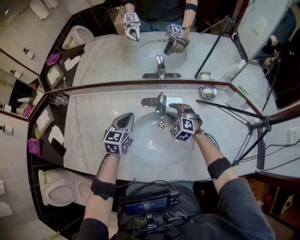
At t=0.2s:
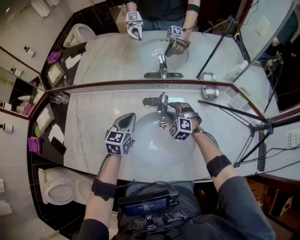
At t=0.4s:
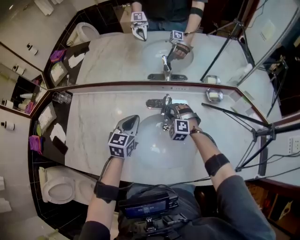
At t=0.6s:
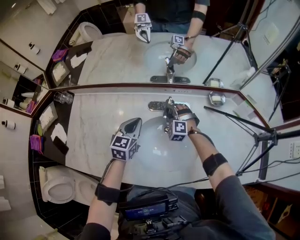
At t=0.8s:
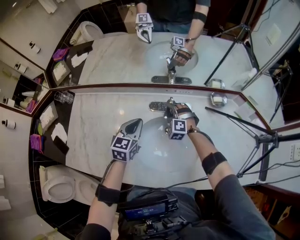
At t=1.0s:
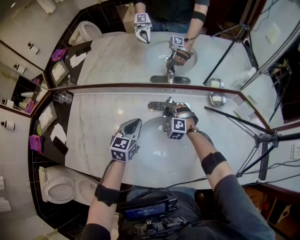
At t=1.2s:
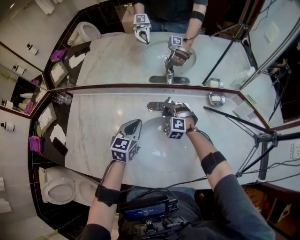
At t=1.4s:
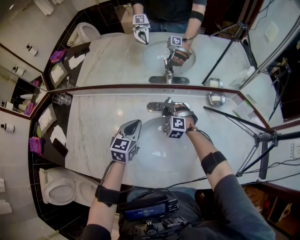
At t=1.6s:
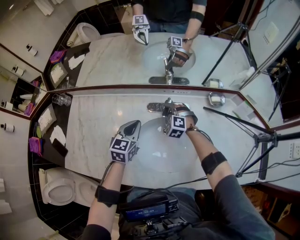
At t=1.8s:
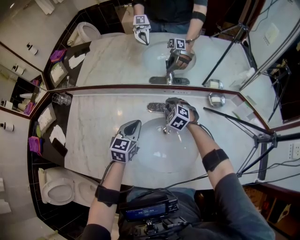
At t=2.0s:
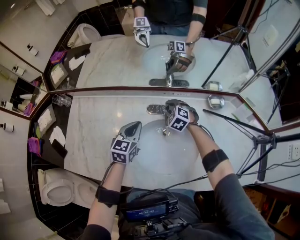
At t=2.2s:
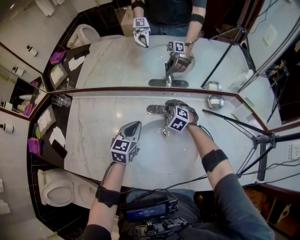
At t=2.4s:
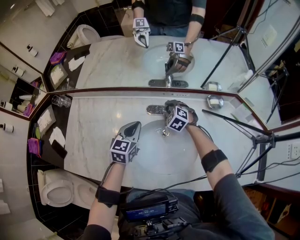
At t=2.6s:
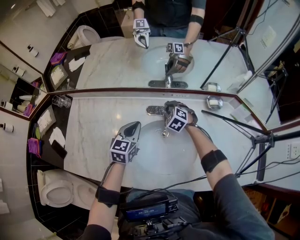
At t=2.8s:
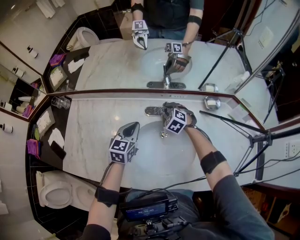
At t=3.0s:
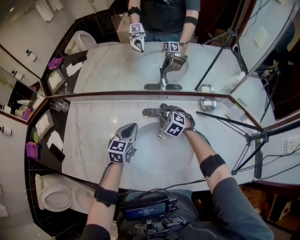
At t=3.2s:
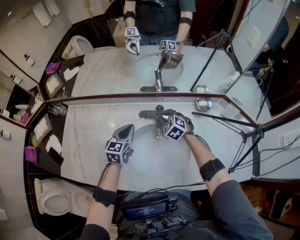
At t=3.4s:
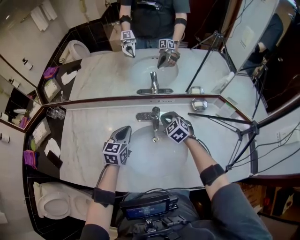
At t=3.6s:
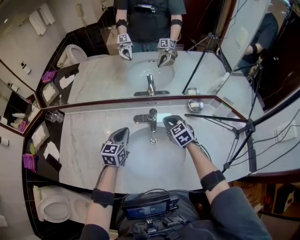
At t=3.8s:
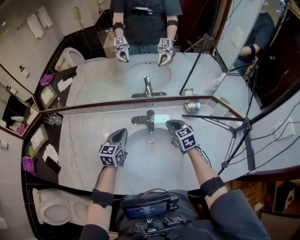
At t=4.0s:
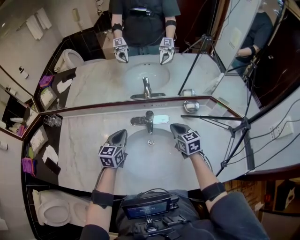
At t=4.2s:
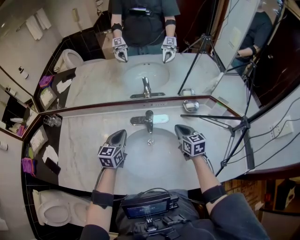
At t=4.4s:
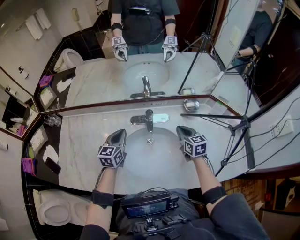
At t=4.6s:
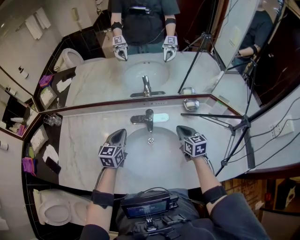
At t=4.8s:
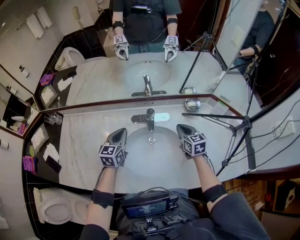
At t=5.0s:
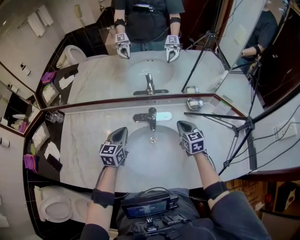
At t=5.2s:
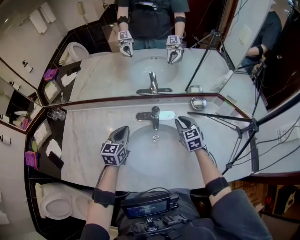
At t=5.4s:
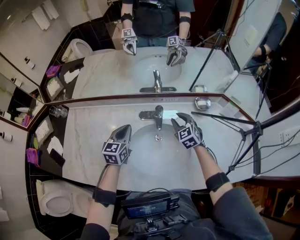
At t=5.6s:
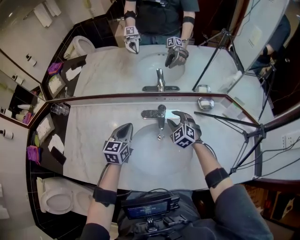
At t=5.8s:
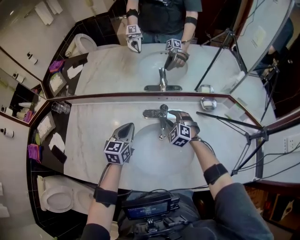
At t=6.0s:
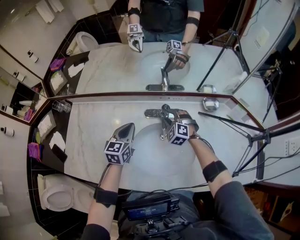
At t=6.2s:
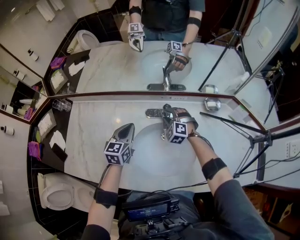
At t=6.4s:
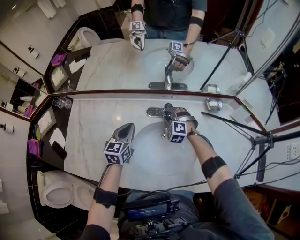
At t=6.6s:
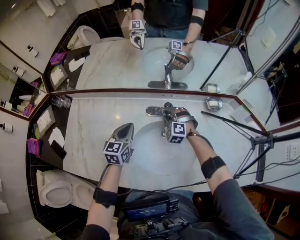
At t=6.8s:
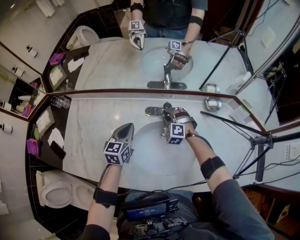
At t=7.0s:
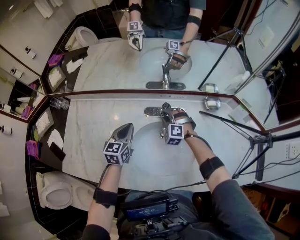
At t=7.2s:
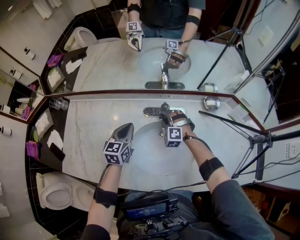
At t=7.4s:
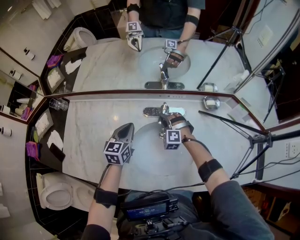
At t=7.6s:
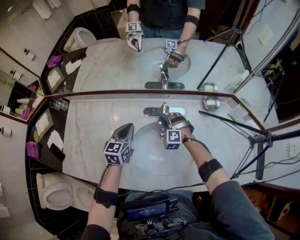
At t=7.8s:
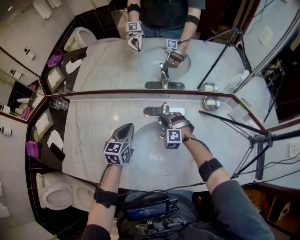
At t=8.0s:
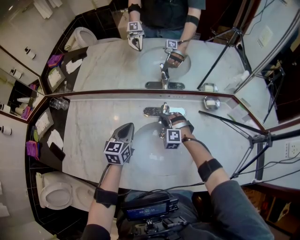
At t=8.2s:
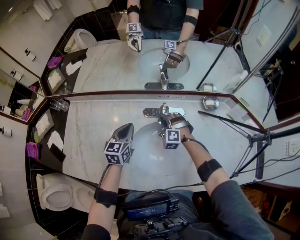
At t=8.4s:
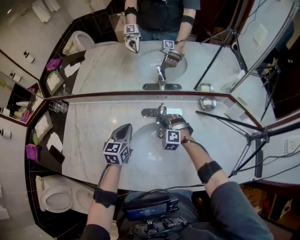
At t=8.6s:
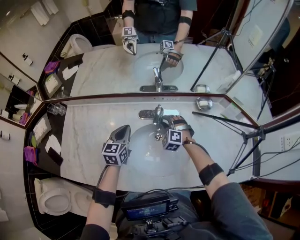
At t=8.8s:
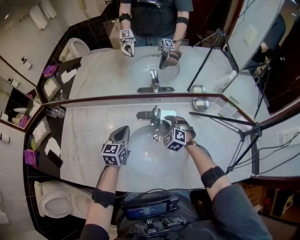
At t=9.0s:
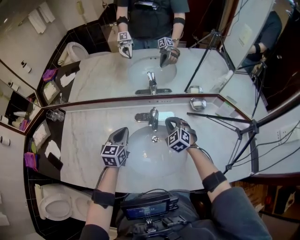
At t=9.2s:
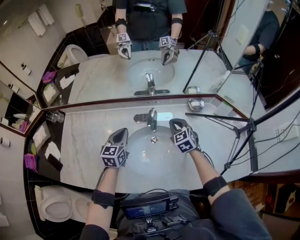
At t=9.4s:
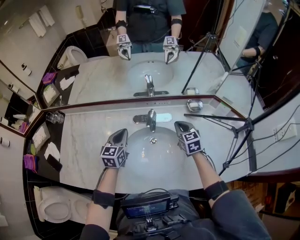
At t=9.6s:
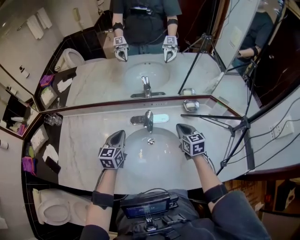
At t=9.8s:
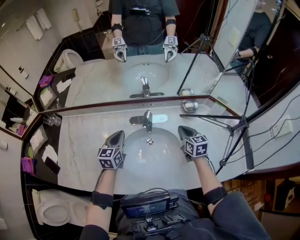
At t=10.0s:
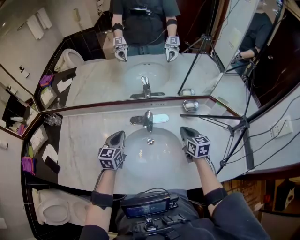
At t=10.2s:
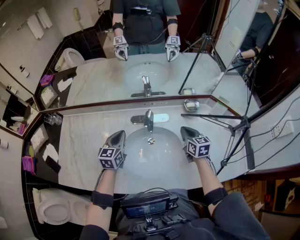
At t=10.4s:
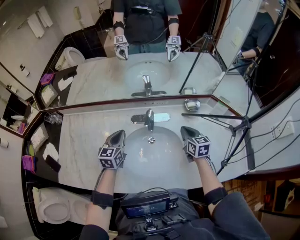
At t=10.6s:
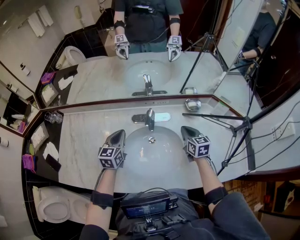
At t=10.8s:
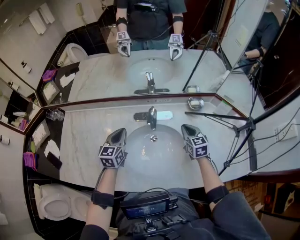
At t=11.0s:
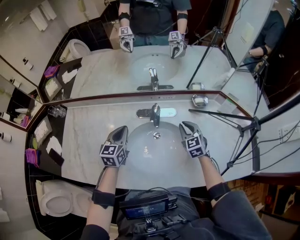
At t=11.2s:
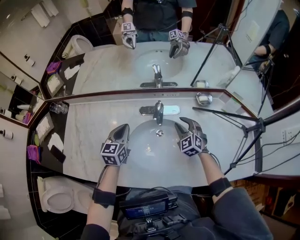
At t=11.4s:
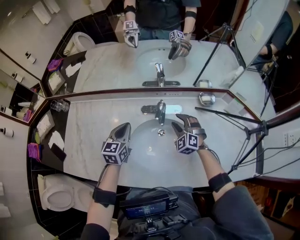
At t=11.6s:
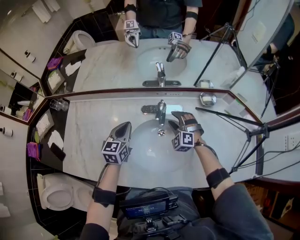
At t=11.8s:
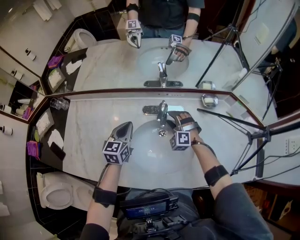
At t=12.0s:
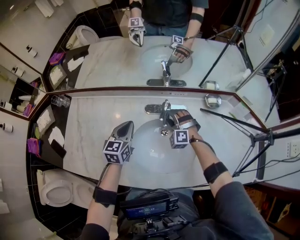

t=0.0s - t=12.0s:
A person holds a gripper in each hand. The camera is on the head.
t=0.0s - t=1.6s: The right gripper shifts about 5 cm forward.
t=1.6s - t=3.0s: The grippers make only small movements.
t=3.0s - t=4.4s: The right gripper moves to the right, backward and upward, some 20 cm, twists approximately 50 degrees clockwise, seen from behind, and closes.
t=4.4s - t=6.0s: The right gripper shifts roughly 20 cm to the left, forward and downward, rolls counterclockwise, seen from behind, by roughly 70 degrees, and opens its fingers.
t=6.0s - t=7.6s: The right gripper changes place by some 5 cm.
t=7.6s - t=9.0s: The right gripper heads to the right and upward, covering approximately 10 cm, changes its angle by some 40 degrees, and closes up.
t=9.0s - t=10.4s: The right gripper shifts about 15 cm to the right and backward, and twists about 50 degrees clockwise, seen from behind.
t=10.4s - t=12.0s: The right gripper moves to the left, downward and forward, approximately 20 cm, twists about 90 degrees counterclockwise, seen from behind, and opens up.

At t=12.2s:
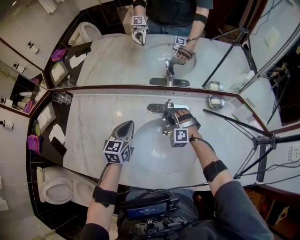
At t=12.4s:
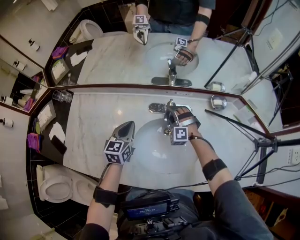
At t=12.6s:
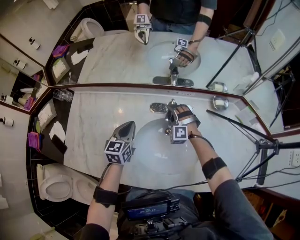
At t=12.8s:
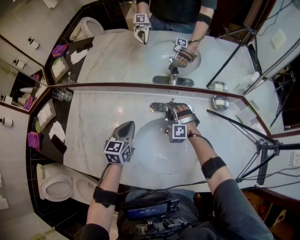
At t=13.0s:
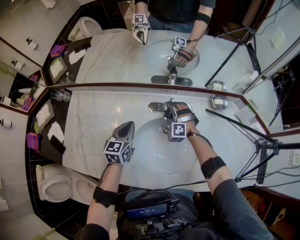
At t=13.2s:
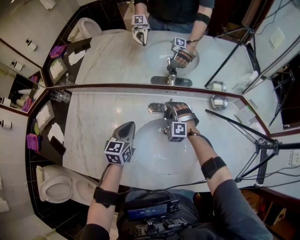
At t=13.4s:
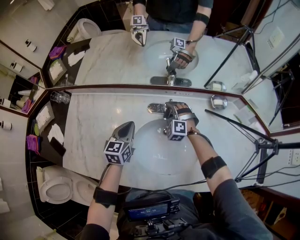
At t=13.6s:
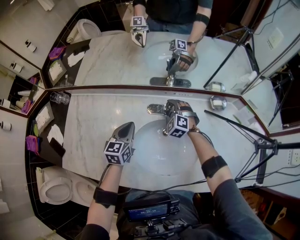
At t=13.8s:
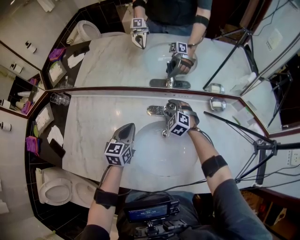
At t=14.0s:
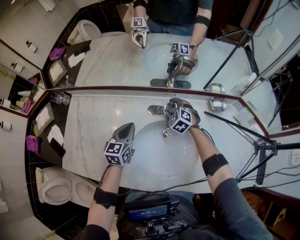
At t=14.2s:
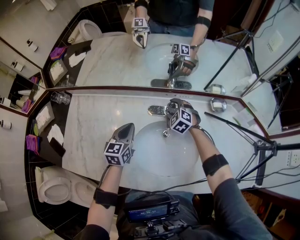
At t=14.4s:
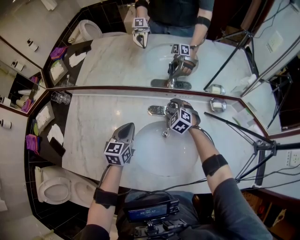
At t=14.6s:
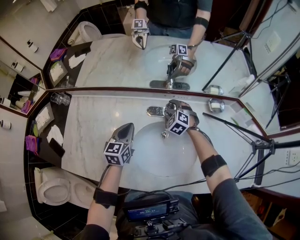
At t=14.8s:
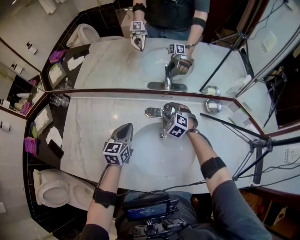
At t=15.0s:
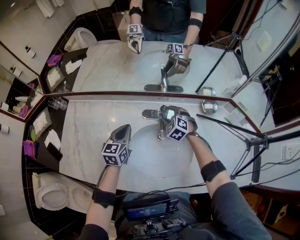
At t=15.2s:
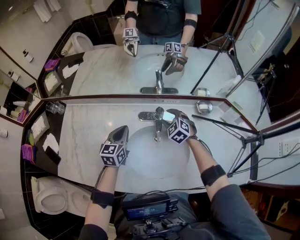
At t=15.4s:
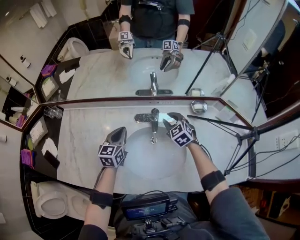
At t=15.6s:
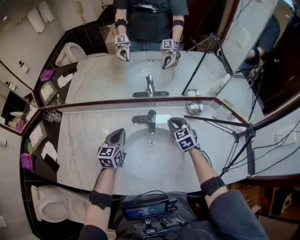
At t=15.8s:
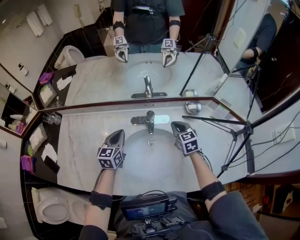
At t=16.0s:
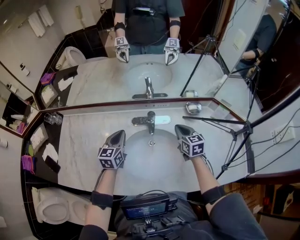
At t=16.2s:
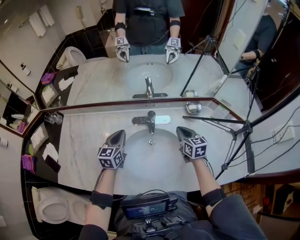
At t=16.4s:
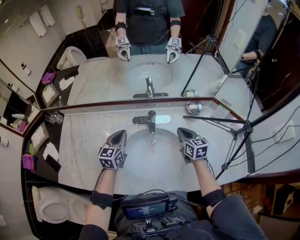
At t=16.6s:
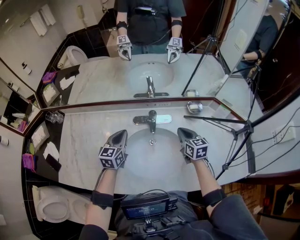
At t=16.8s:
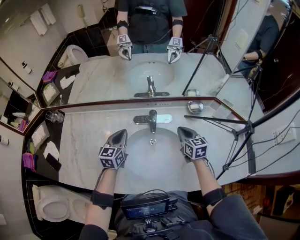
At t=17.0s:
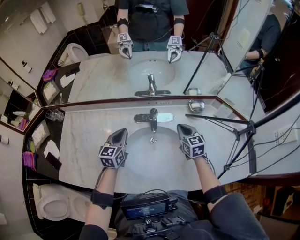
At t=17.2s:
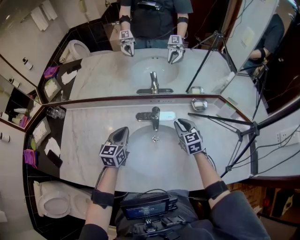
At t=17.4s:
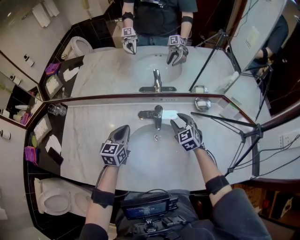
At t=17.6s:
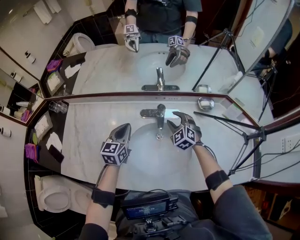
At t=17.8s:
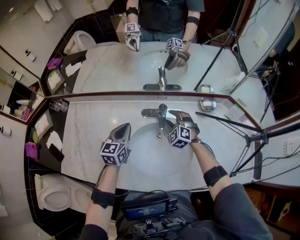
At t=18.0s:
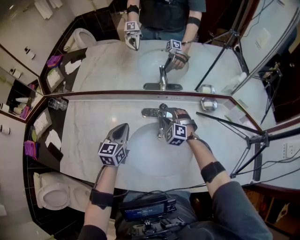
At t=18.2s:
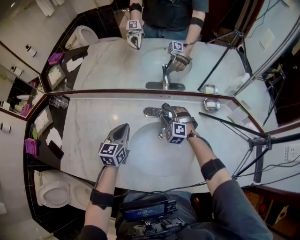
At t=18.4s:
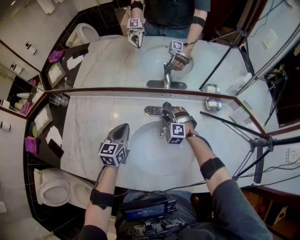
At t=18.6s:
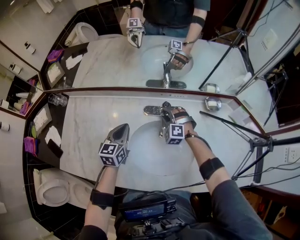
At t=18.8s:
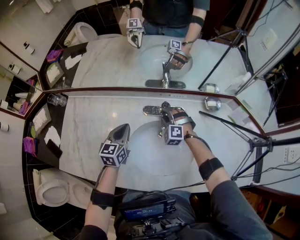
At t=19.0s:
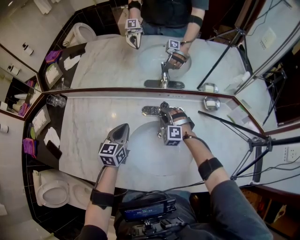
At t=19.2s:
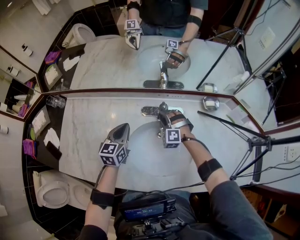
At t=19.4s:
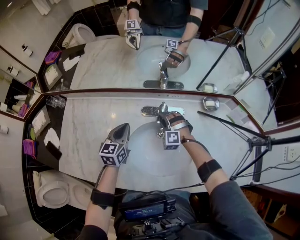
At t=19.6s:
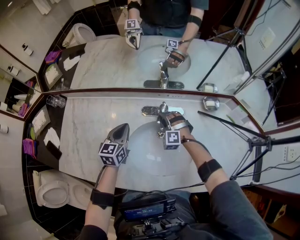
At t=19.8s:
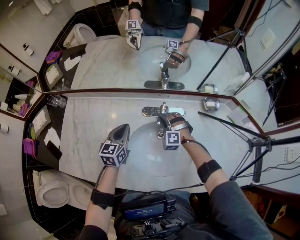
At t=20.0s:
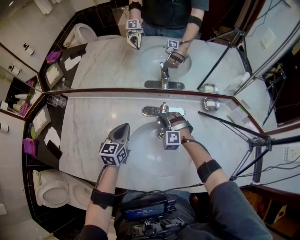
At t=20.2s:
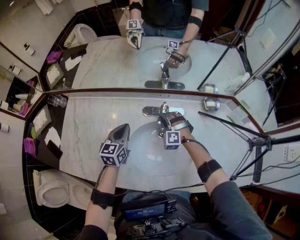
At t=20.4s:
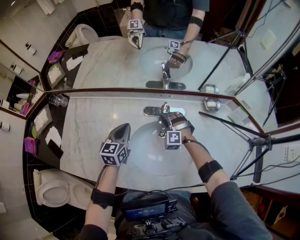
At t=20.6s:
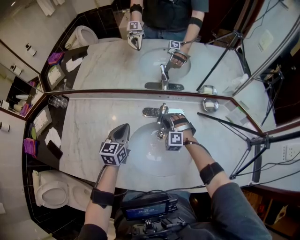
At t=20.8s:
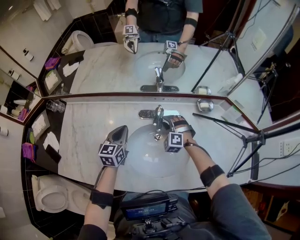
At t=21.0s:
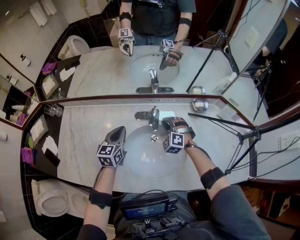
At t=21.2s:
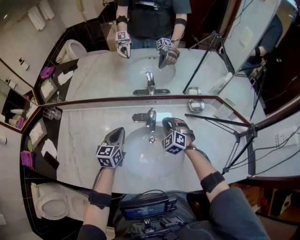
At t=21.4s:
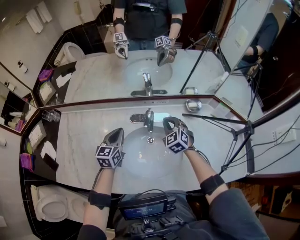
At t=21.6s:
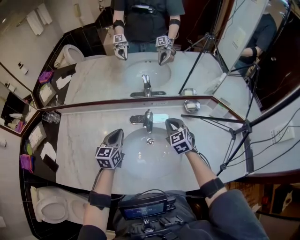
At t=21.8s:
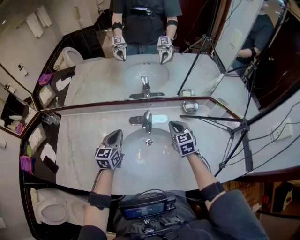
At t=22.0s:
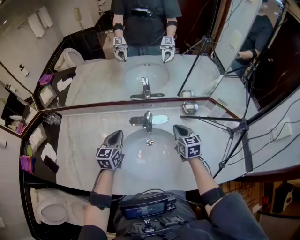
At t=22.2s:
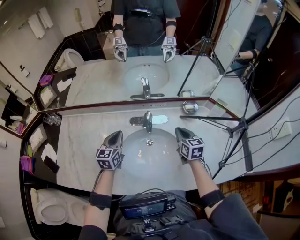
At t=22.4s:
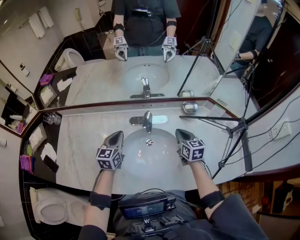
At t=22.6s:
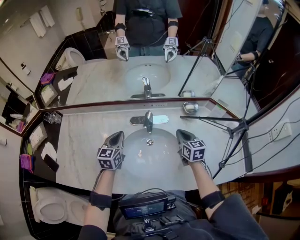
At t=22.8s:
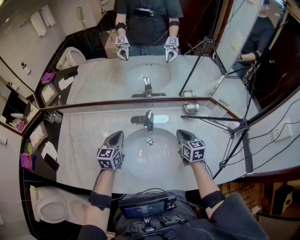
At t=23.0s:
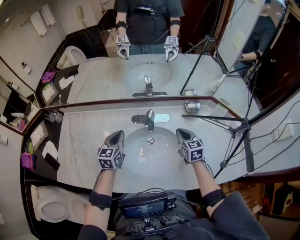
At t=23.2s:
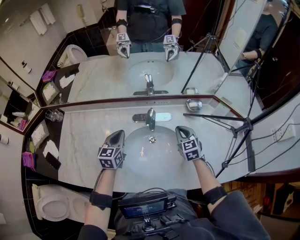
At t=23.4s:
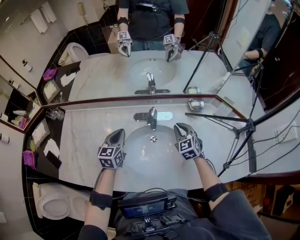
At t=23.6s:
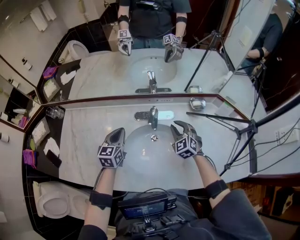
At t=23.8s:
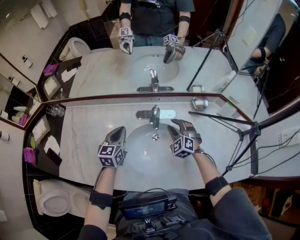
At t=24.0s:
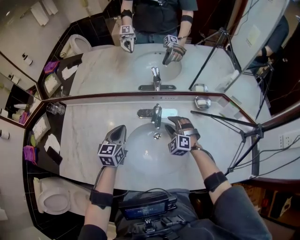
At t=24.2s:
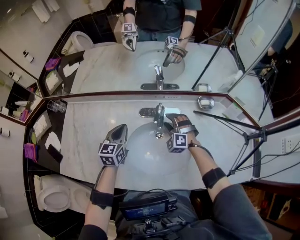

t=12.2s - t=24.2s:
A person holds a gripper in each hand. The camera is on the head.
t=12.2s - t=13.8s: The right gripper shifts about 5 cm forward, and swivels approximately 30 degrees.
t=13.8s - t=15.2s: The right gripper shifts by about 5 cm.
t=15.2s - t=16.6s: The right gripper goes roughly 15 cm to the right, backward and upward, rolls clockwise, seen from behind, by some 50 degrees, and closes up.
t=16.6s - t=18.2s: The right gripper travels to the left, forward and downward by about 20 cm, rotates around the line of its fingers by roughly 80 degrees, counterclockwise from behind, and opens.
t=18.2s - t=19.8s: There are only small adjustments of the grippers.
t=19.8s - t=21.2s: The right gripper moves upward and to the right, approximately 10 cm, turns by roughly 30 degrees, and closes.
t=21.2s - t=22.6s: The right gripper heads to the right and backward, covering roughly 10 cm, and rolls clockwise, seen from behind, by some 60 degrees.
t=22.6s - t=24.2s: The right gripper heads to the left, forward and downward, covering roughly 15 cm, rolls counterclockwise, seen from behind, by approximately 80 degrees, and opens up.
